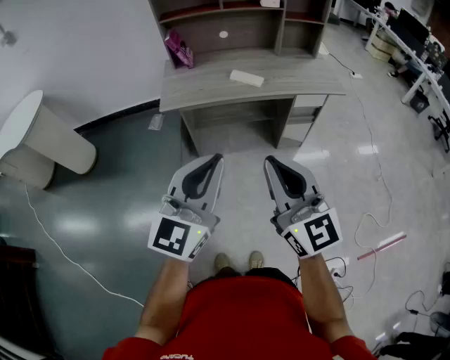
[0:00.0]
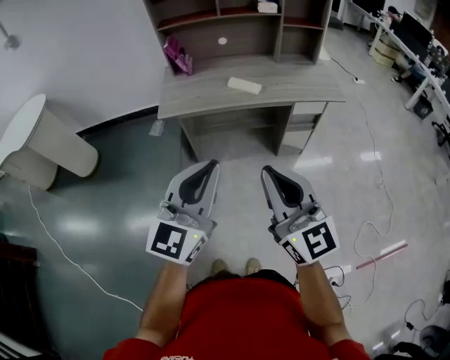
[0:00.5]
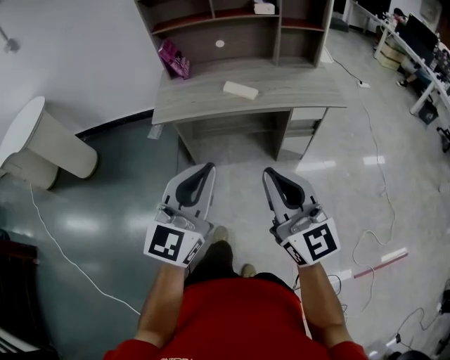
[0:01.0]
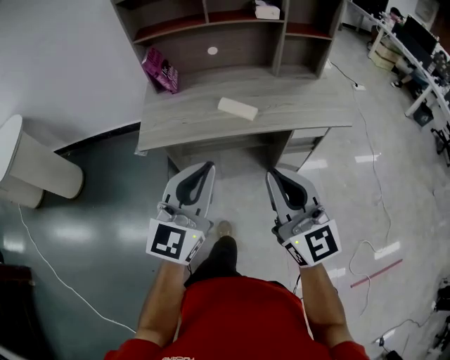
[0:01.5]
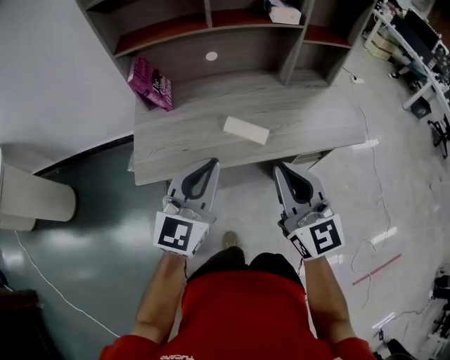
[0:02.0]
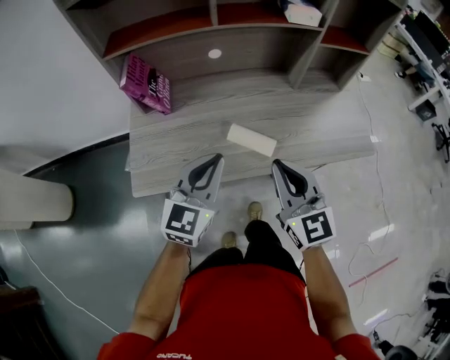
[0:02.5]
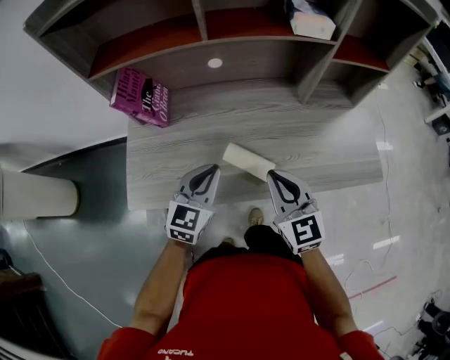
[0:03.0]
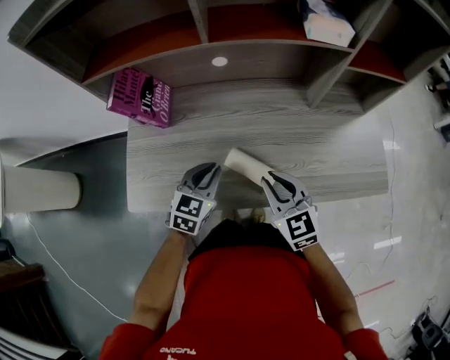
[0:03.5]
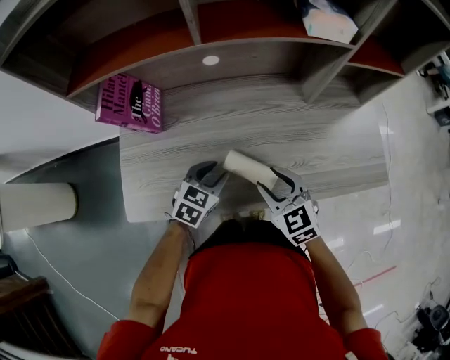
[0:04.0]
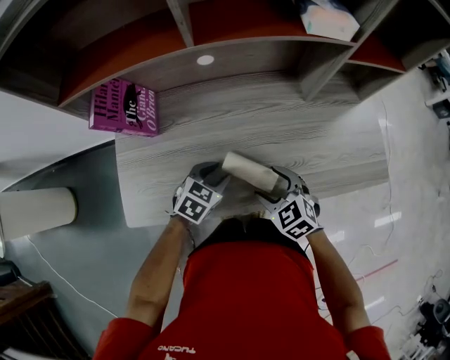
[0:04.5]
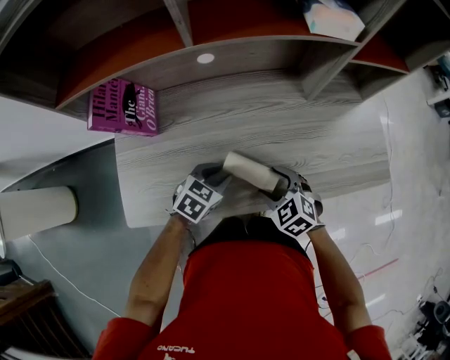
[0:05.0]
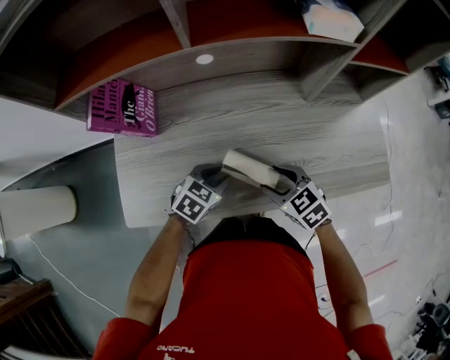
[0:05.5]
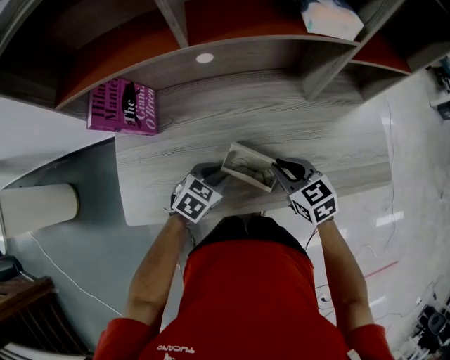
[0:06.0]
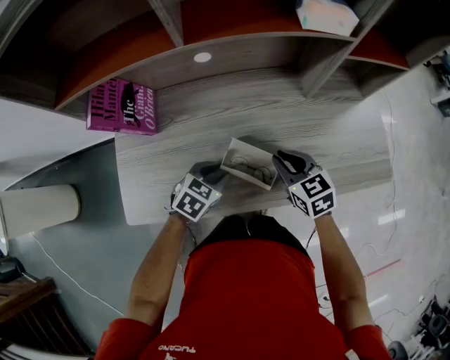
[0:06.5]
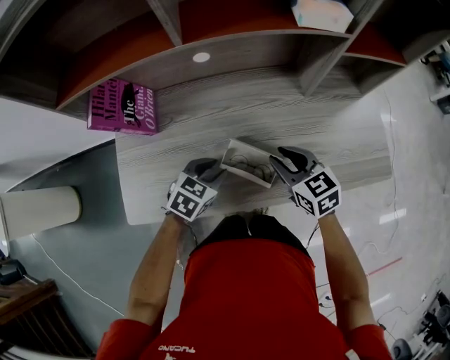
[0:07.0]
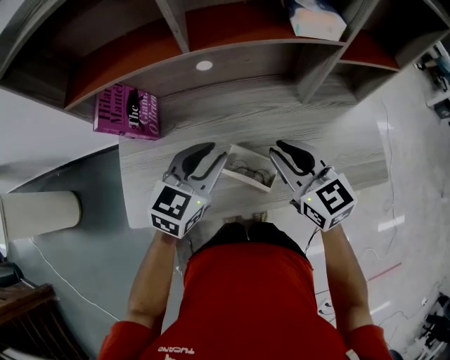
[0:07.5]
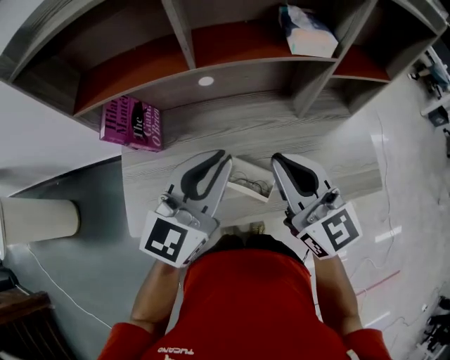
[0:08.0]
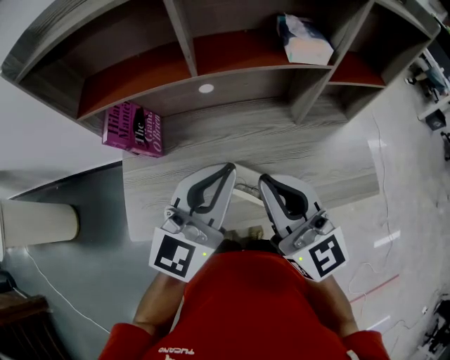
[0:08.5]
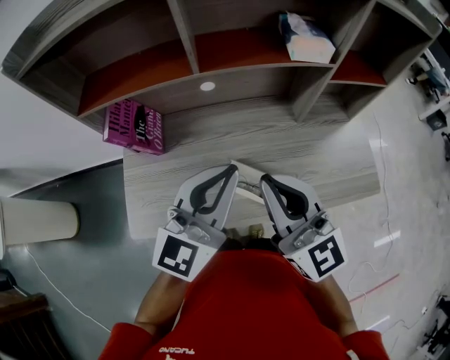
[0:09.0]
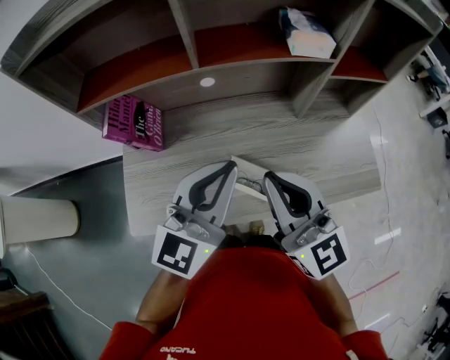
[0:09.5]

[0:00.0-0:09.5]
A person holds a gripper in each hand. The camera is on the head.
0:00.0 to 0:02.0: The grippers both shift forward by some 40 cm.
0:02.0 to 0:04.0: Both grippers move downward and forward, approximately 30 cm. The right gripper angles its fingers downward, by about 40 degrees, and opens. The left gripper tilts its fingers about 40 degrees downward, and opens its fingers.
0:04.0 to 0:05.5: The right gripper changes place by approximately 5 cm.
0:05.5 to 0:07.5: The grippers both shift upward by some 20 cm. The right gripper turns by roughly 30 degrees, and closes up. Meanwhile the left gripper changes its angle by approximately 30 degrees.
0:07.5 to 0:09.5: The right gripper travels upward and backward by approximately 15 cm, and changes its angle by some 20 degrees. Meanwhile the left gripper is displaced upward by approximately 15 cm, changes its angle by some 30 degrees, and closes up.

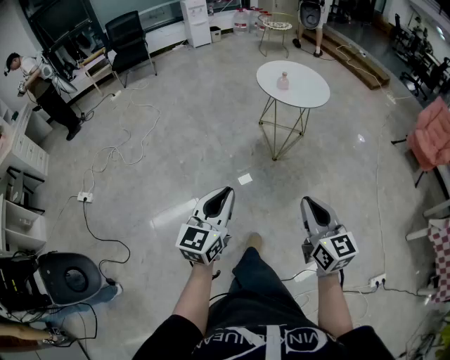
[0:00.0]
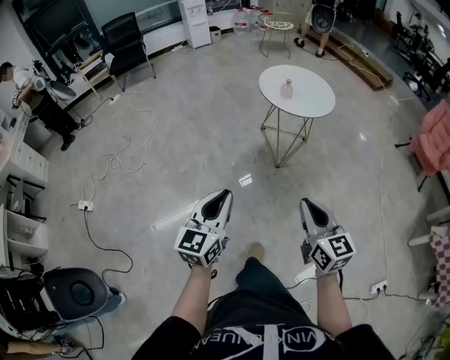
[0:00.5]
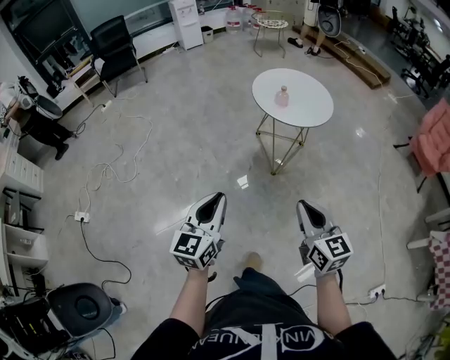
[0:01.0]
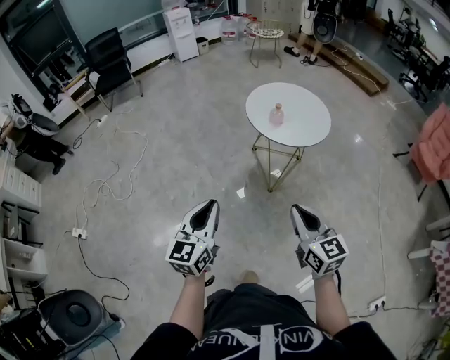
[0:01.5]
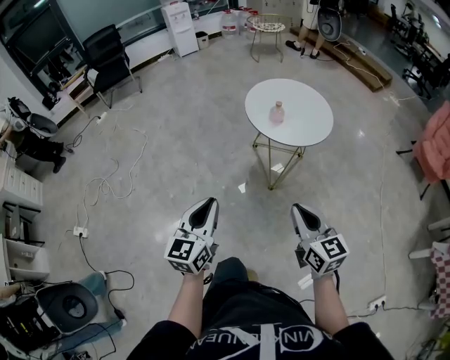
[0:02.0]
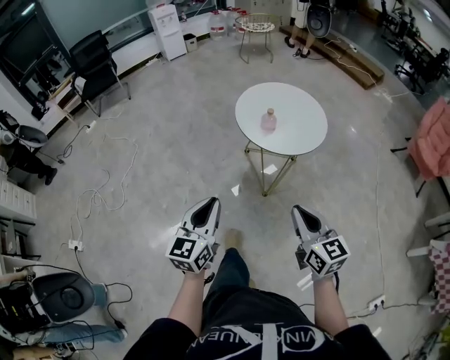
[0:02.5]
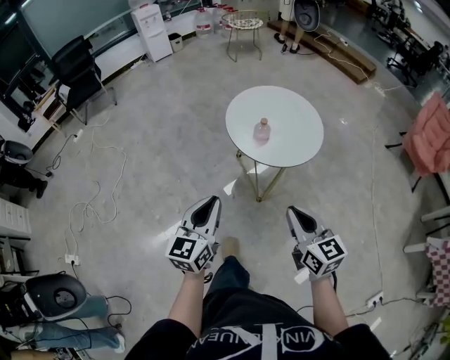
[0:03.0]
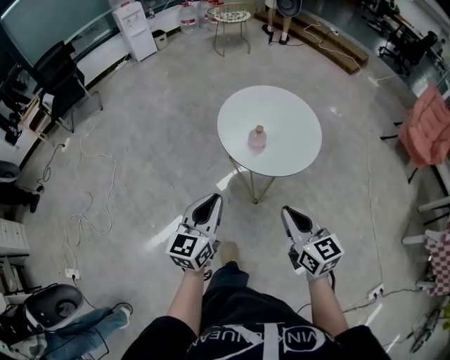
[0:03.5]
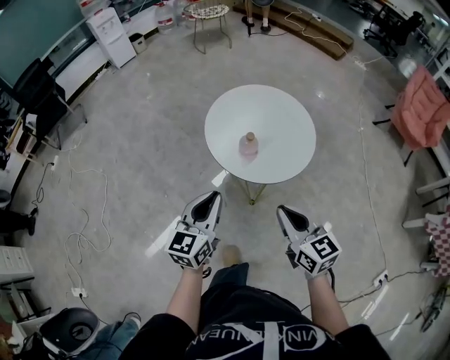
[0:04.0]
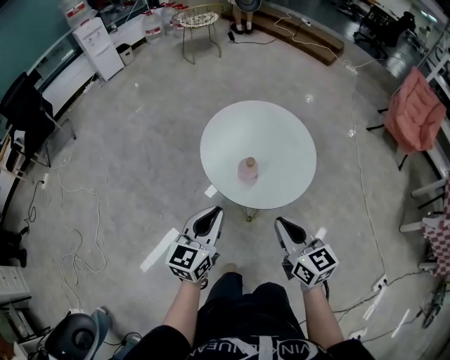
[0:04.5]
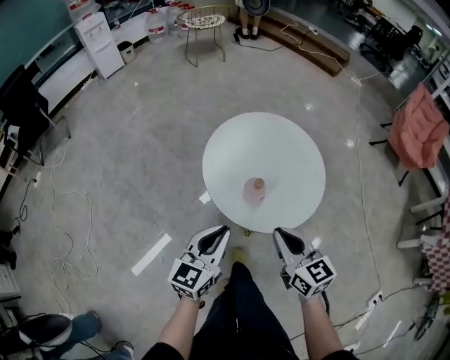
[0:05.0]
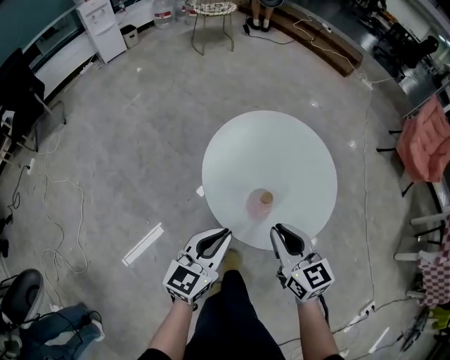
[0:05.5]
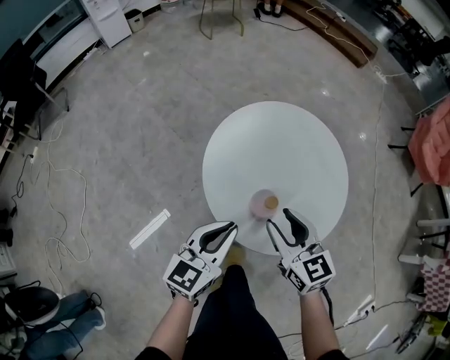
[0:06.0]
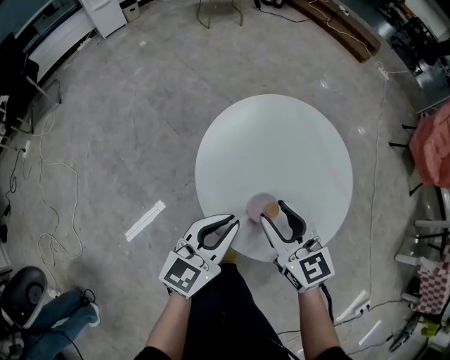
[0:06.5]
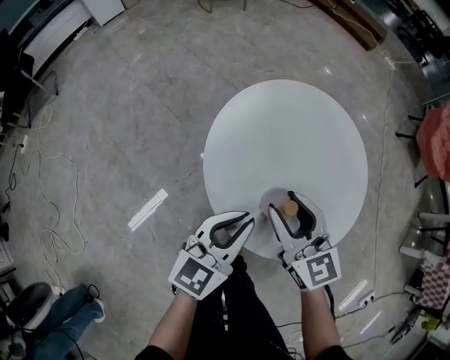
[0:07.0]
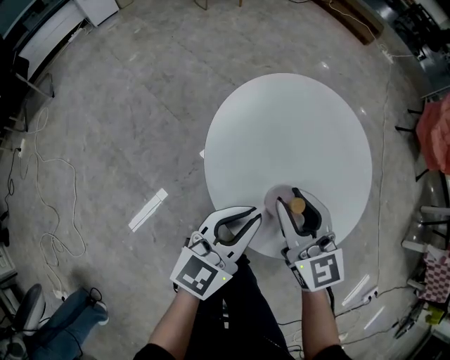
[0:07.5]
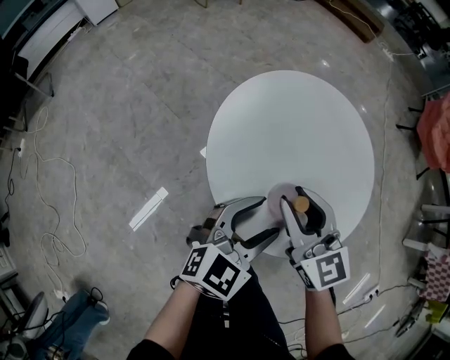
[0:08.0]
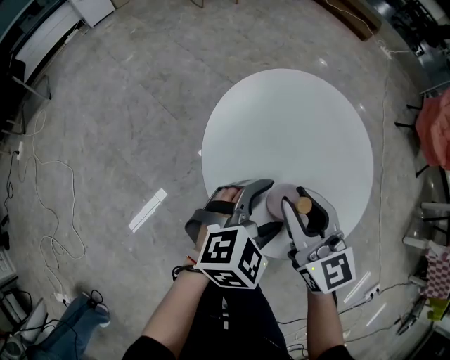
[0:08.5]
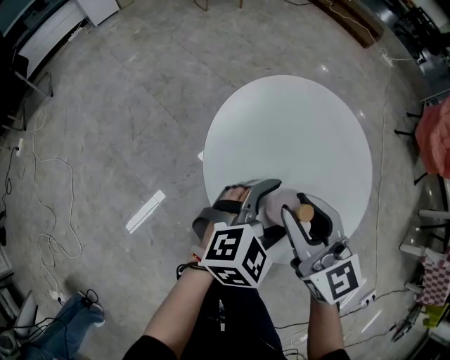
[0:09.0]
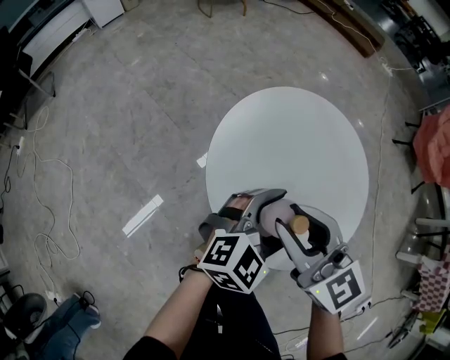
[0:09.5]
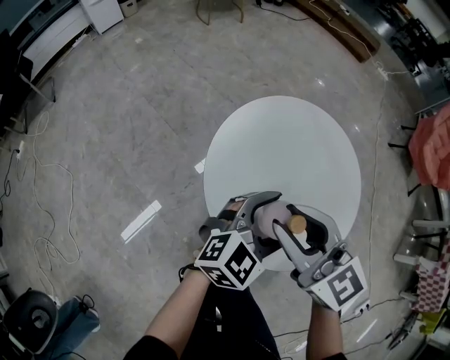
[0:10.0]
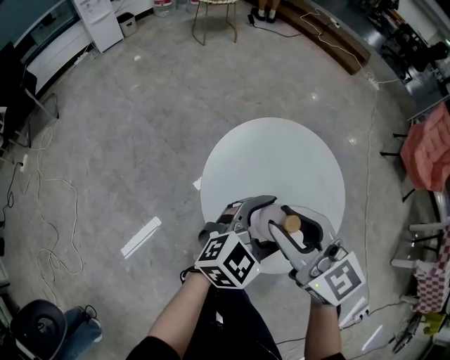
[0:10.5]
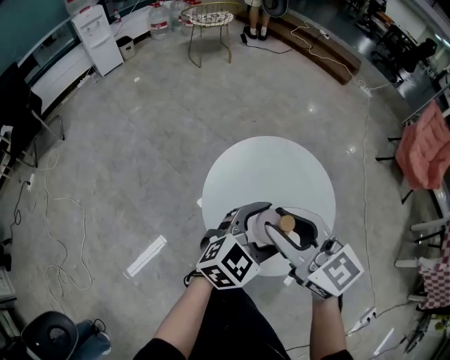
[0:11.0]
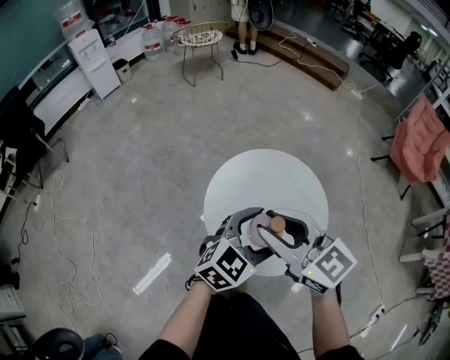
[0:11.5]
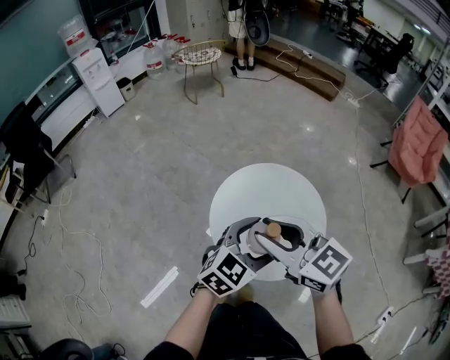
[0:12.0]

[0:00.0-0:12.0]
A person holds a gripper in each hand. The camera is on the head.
0:00.0 to 0:02.0: The grippers both shift forward by roughly 30 cm.
0:02.0 to 0:04.0: The two grippers go about 30 cm forward. The left gripper swivels about 20 degrees.
0:04.0 to 0:06.0: Both grippers move forward and downward, approximately 25 cm. The right gripper opens.
0:06.0 to 0:08.0: The left gripper shifts by approximately 10 cm, changes its angle by approximately 30 degrees, and opens its fingers; the right gripper moves approximately 5 cm.
0:08.0 to 0:10.0: The right gripper shifts about 10 cm upward. Meanwhile the left gripper moves roughly 5 cm.
0:10.0 to 0:12.0: Both grippers move upward, about 20 cm.

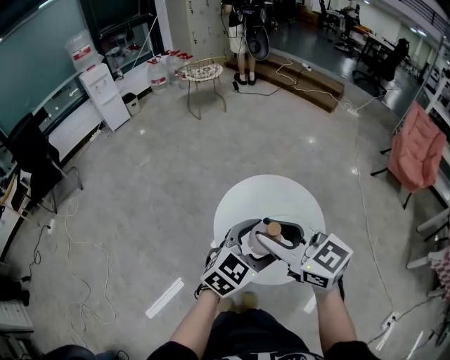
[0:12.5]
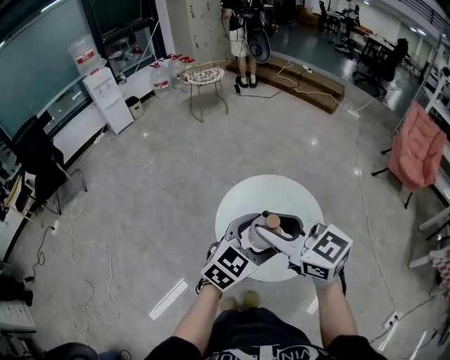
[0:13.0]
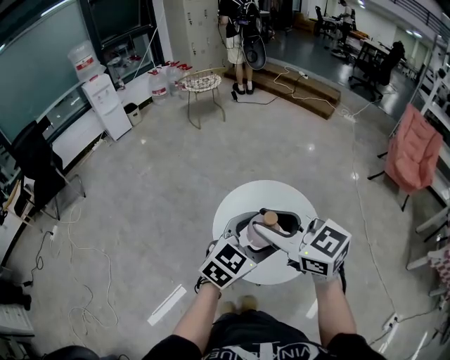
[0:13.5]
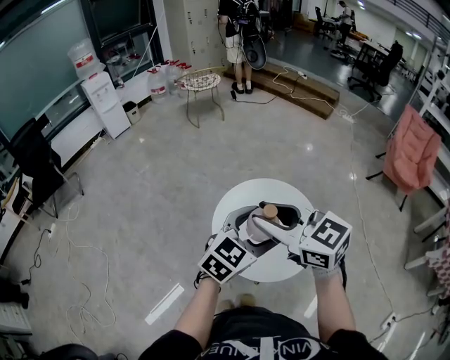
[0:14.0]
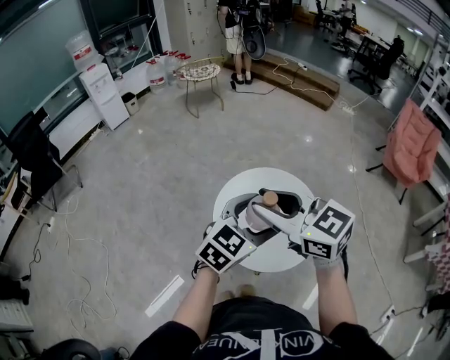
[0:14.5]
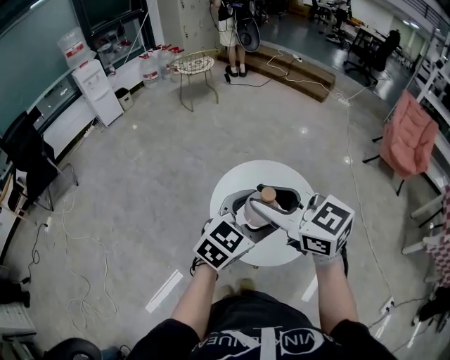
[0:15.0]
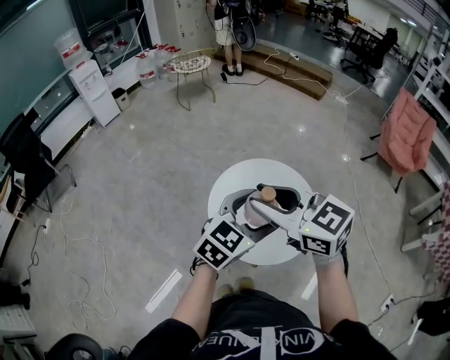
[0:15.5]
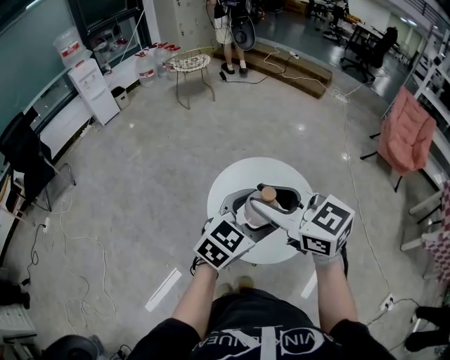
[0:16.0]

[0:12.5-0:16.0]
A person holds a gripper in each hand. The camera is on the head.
0:12.5 to 0:14.5: The two grippers go about 5 cm upward.
0:14.5 to 0:16.0: Both grippers stay put.

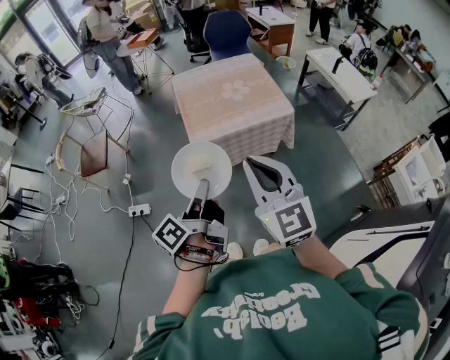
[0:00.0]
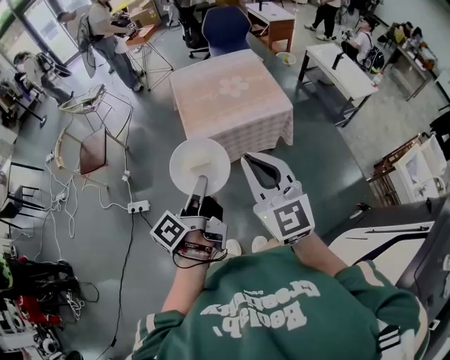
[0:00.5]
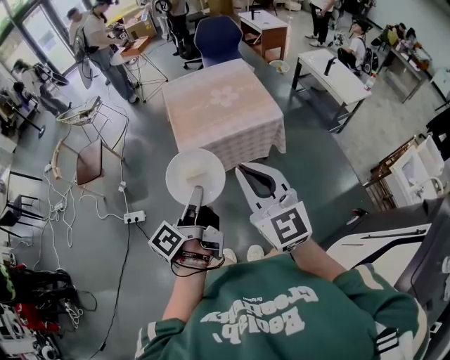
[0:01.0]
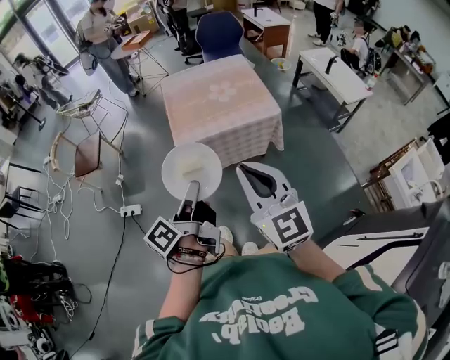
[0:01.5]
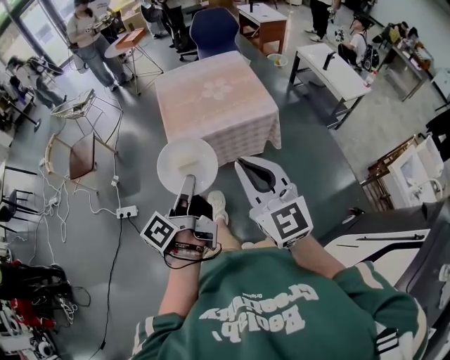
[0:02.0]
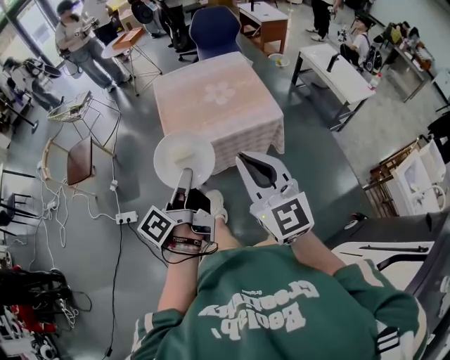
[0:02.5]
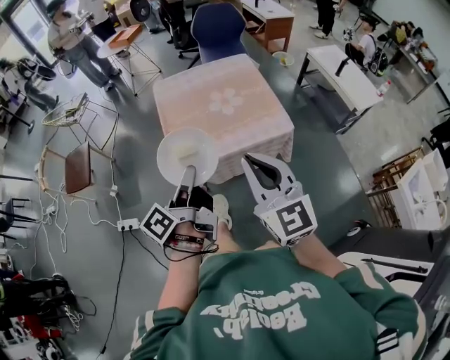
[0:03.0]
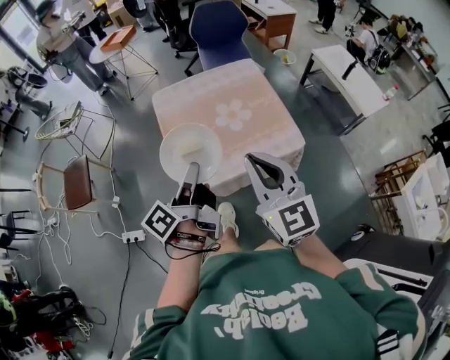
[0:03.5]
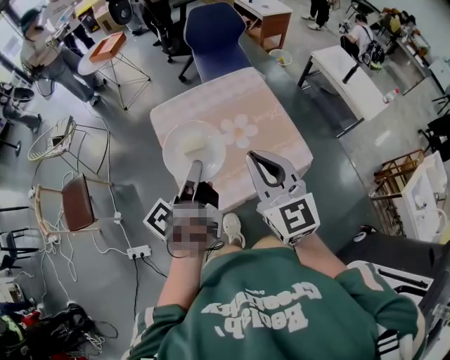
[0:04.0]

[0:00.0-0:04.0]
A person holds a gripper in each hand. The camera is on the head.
0:00.0 to 0:02.0: The right gripper ends up roughly 10 cm from where it was.
0:02.0 to 0:04.0: The right gripper ends up approximately 40 cm from where it was.
